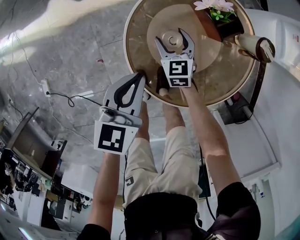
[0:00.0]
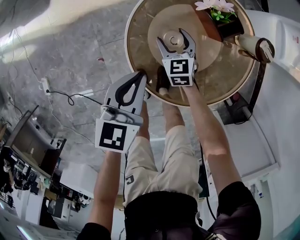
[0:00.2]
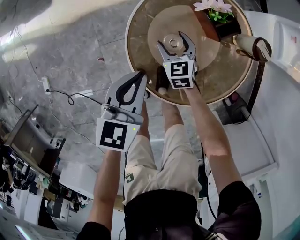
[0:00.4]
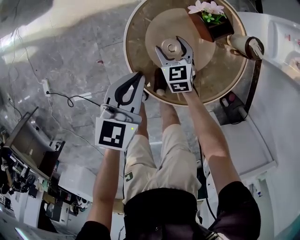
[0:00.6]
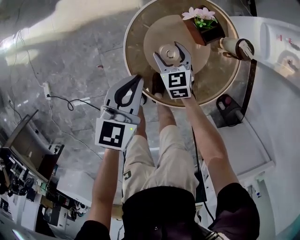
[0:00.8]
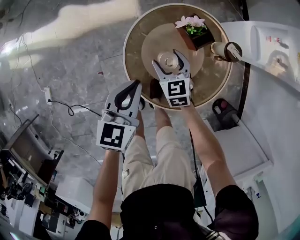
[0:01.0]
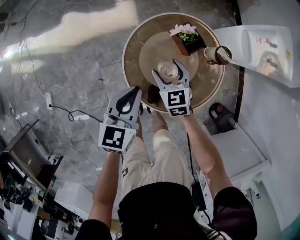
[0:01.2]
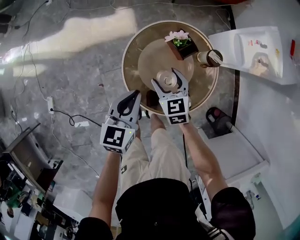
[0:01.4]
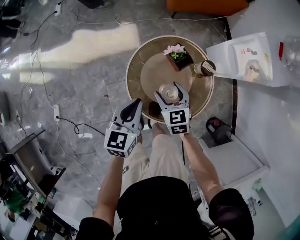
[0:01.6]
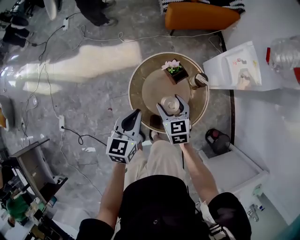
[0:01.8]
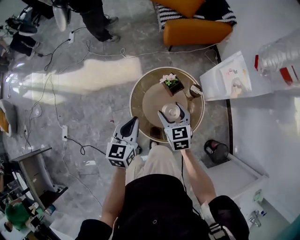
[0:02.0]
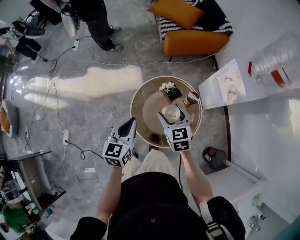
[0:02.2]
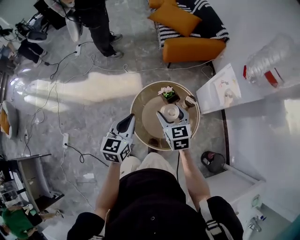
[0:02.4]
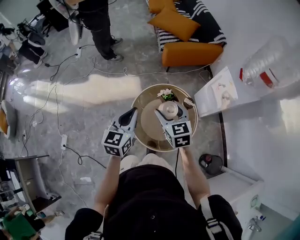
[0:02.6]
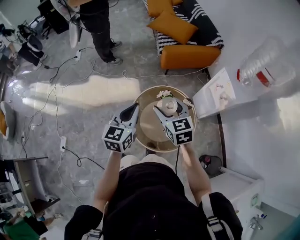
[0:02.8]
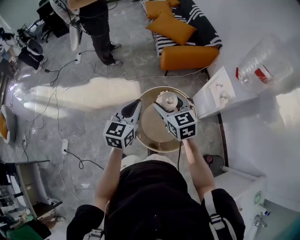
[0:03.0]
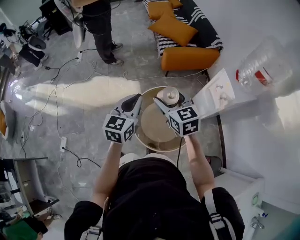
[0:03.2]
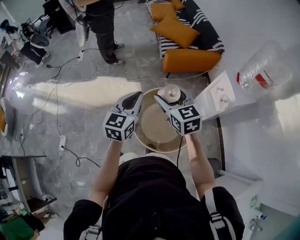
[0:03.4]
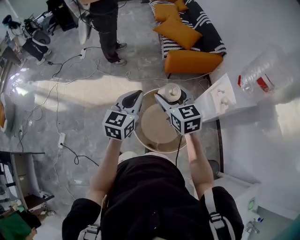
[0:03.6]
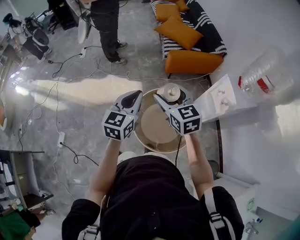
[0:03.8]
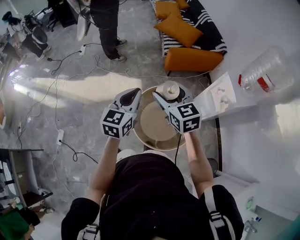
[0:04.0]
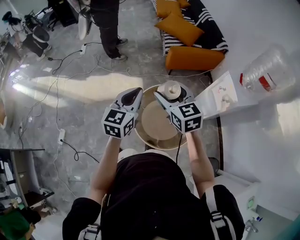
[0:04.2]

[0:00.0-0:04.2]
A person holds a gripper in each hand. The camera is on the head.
0:00.0 to 0:01.4: The left gripper moves upward, roughly 15 cm. Meanwhile the right gripper goes some 25 cm upward.
0:01.4 to 0:02.8: Both grippers move upward, roughly 30 cm.
0:02.8 to 0:04.2: The left gripper changes place by some 5 cm. The right gripper is displaced upward by about 5 cm.

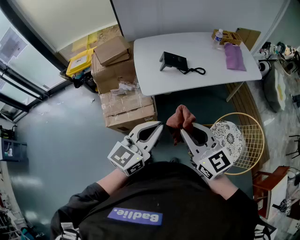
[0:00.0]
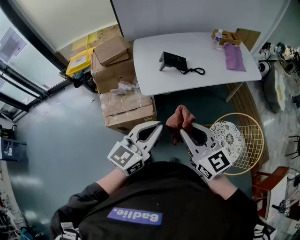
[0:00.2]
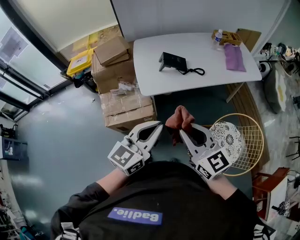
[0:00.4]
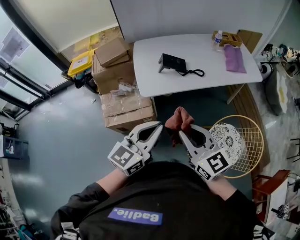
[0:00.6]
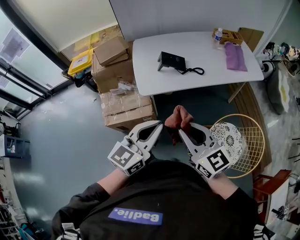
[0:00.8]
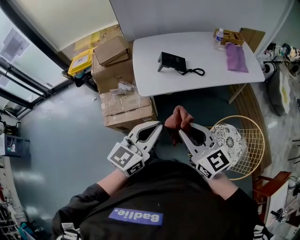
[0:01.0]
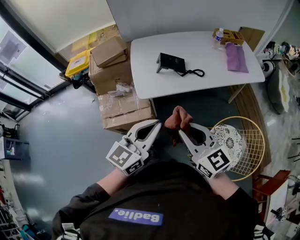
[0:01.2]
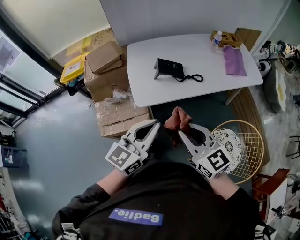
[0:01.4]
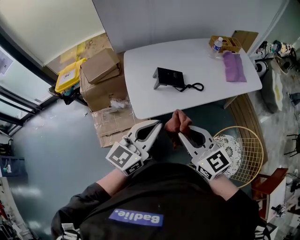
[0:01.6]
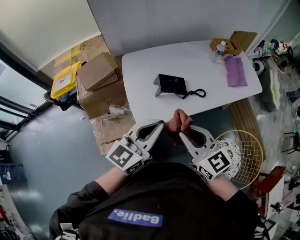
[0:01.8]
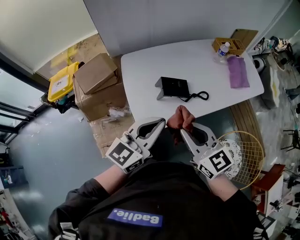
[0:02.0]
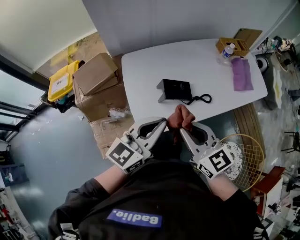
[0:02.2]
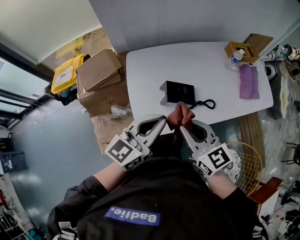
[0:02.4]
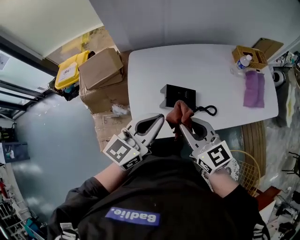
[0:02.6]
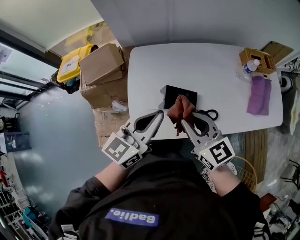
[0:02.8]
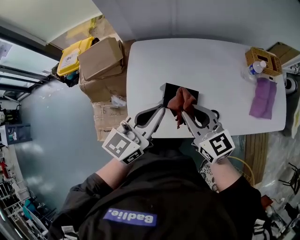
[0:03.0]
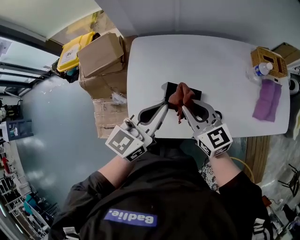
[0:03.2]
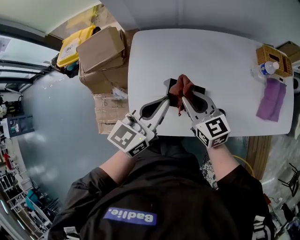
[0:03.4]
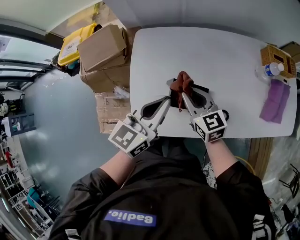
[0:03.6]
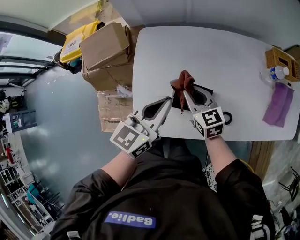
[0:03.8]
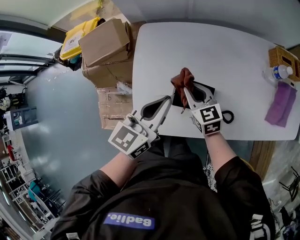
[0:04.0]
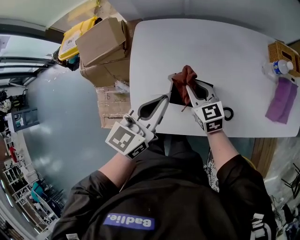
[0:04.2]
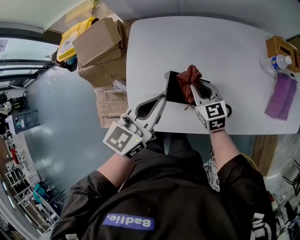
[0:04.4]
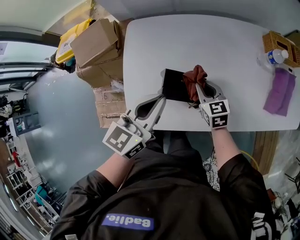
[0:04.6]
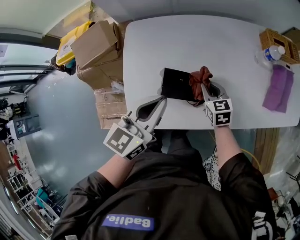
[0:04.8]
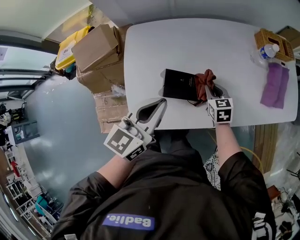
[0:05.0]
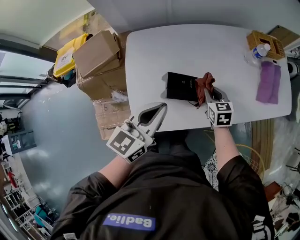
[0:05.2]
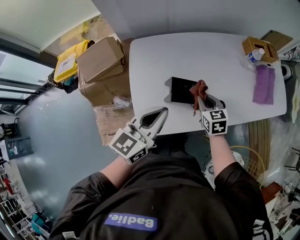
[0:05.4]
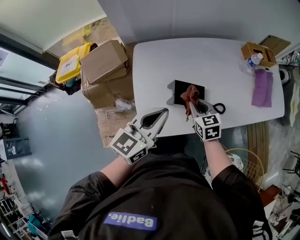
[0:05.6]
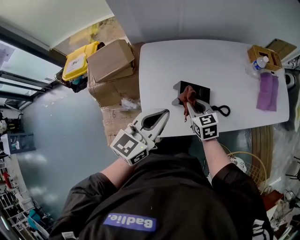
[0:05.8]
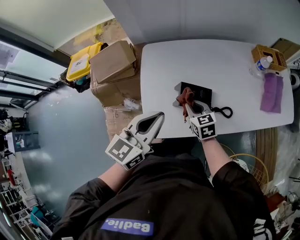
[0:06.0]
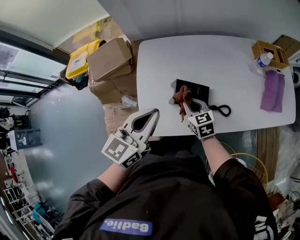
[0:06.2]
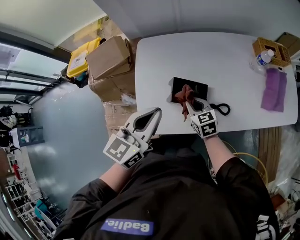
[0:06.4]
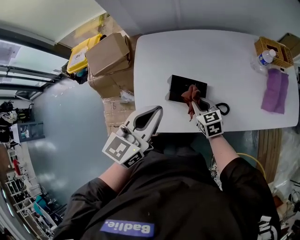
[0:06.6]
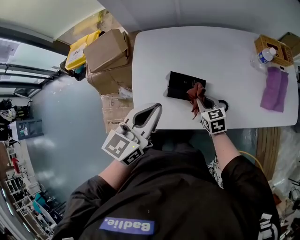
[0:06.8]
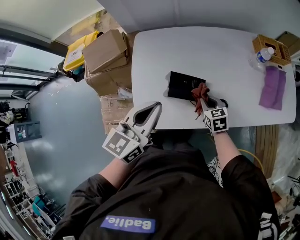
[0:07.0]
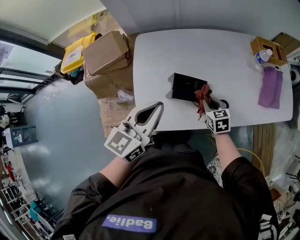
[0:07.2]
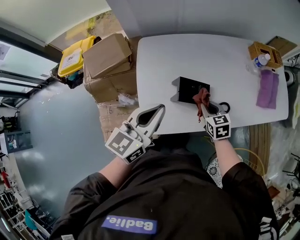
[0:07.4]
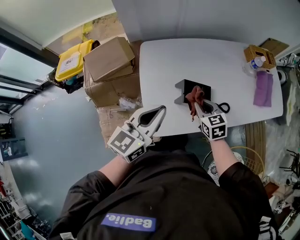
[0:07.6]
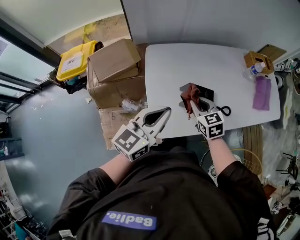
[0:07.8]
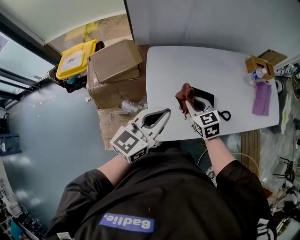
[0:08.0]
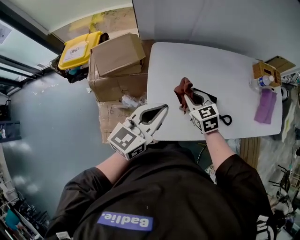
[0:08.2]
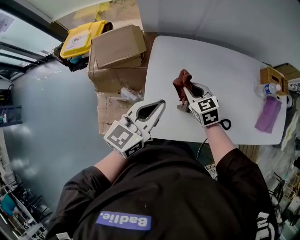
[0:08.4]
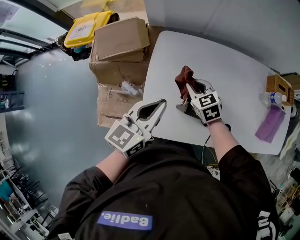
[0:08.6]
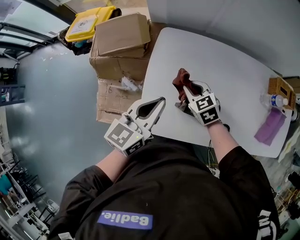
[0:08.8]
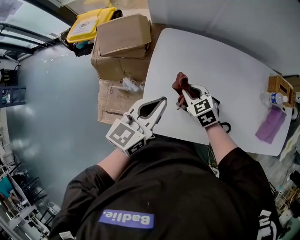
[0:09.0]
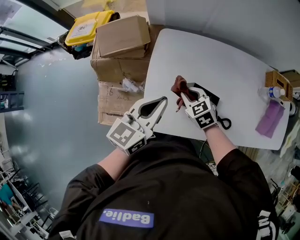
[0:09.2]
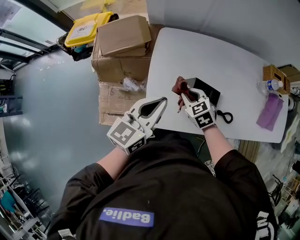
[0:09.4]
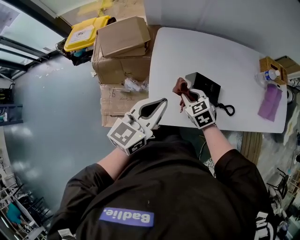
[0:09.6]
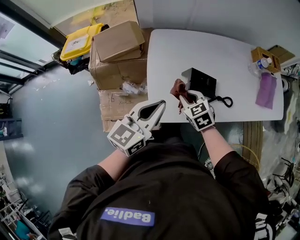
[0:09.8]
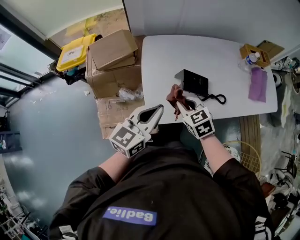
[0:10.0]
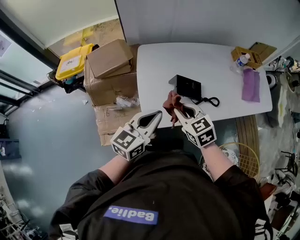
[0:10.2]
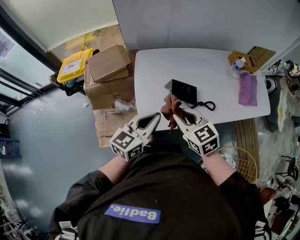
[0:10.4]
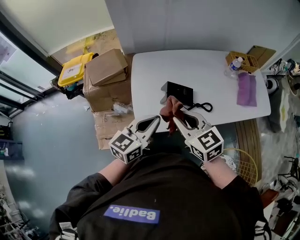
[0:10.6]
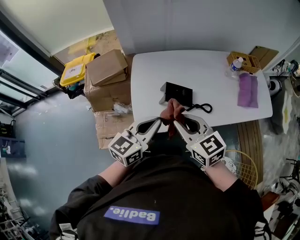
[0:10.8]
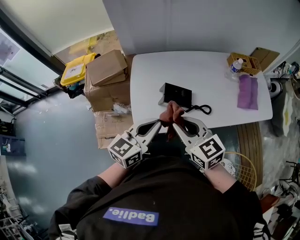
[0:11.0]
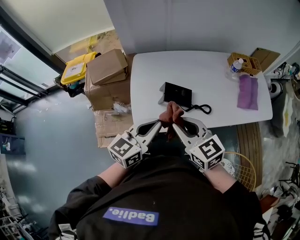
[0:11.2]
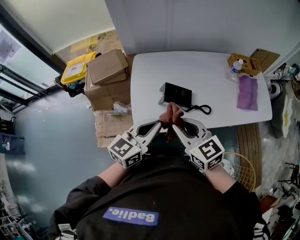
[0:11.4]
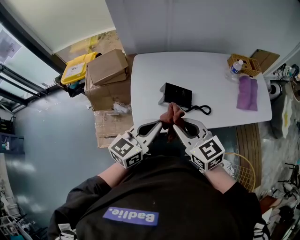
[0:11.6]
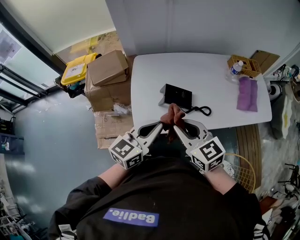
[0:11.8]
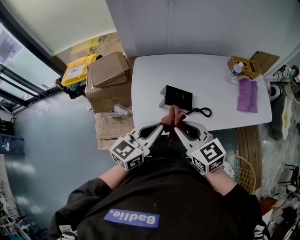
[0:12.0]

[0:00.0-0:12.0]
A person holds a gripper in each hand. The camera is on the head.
0:00.0 to 0:01.6: The grippers both shift forward by roughly 15 cm.
0:01.6 to 0:03.0: Both grippers move forward, some 30 cm.
0:03.0 to 0:04.4: The left gripper moves downward, some 10 cm, while the right gripper shifts some 20 cm downward and forward.
0:04.4 to 0:06.0: The left gripper goes approximately 10 cm backward, upward and to the left, while the right gripper shifts about 5 cm backward, and moves approximately 10 cm to the right and comes back.
0:06.0 to 0:07.6: The right gripper goes to the right and returns, about 10 cm each way.
0:07.6 to 0:09.0: The left gripper moves approximately 5 cm. Meanwhile the right gripper shifts by approximately 15 cm, and changes its angle by about 30 degrees.
0:09.0 to 0:10.4: The left gripper travels backward by approximately 15 cm. The right gripper heads backward and upward, covering approximately 25 cm, and rotates approximately 20 degrees.
0:10.4 to 0:12.0: The grippers both shift to the right by about 5 cm.

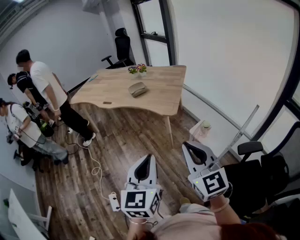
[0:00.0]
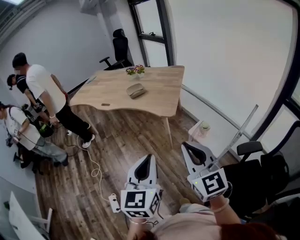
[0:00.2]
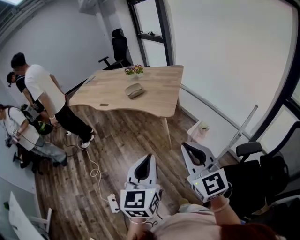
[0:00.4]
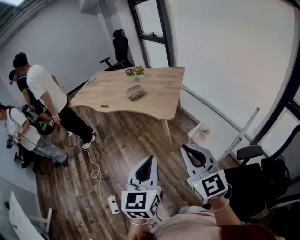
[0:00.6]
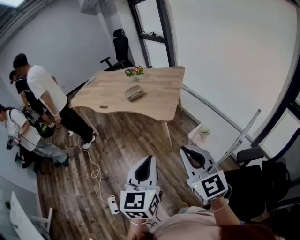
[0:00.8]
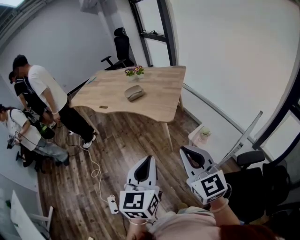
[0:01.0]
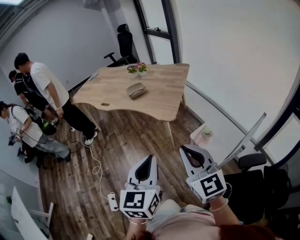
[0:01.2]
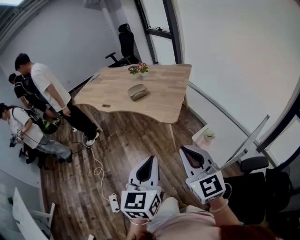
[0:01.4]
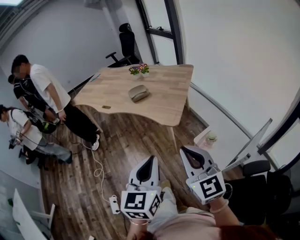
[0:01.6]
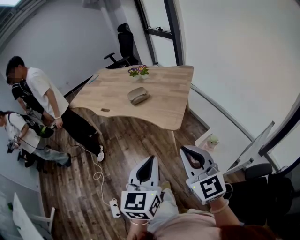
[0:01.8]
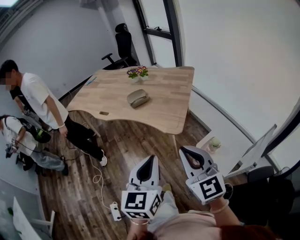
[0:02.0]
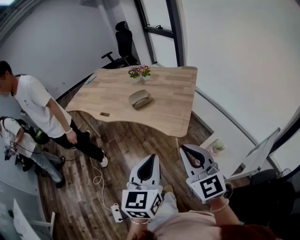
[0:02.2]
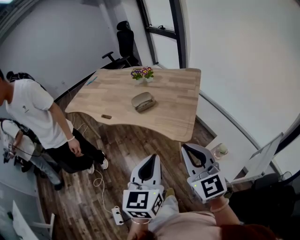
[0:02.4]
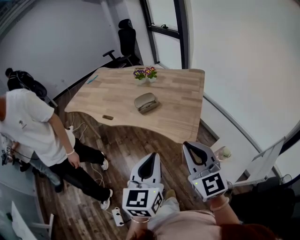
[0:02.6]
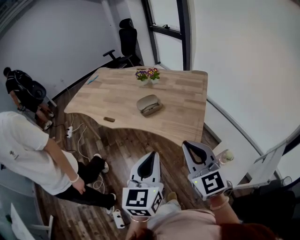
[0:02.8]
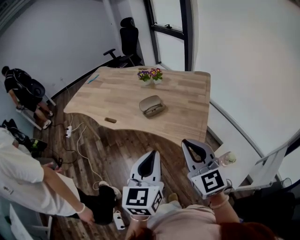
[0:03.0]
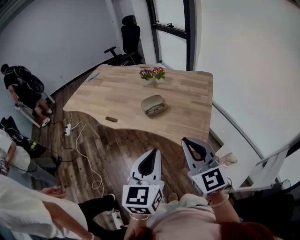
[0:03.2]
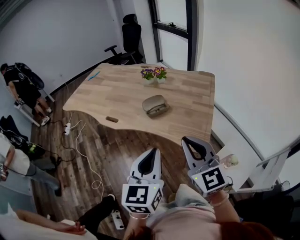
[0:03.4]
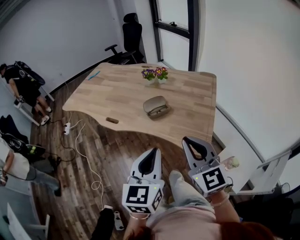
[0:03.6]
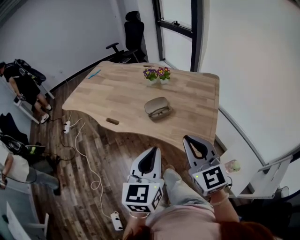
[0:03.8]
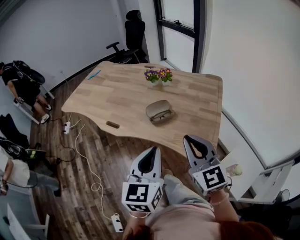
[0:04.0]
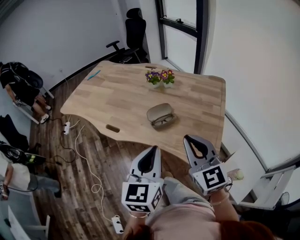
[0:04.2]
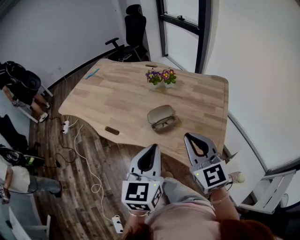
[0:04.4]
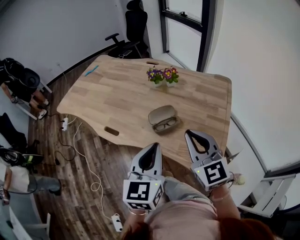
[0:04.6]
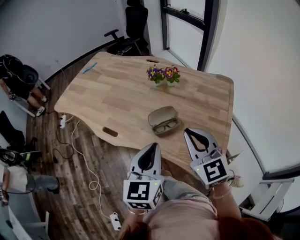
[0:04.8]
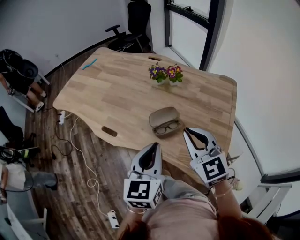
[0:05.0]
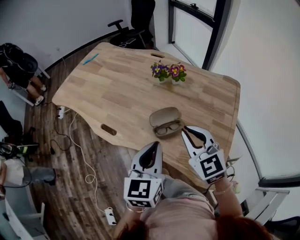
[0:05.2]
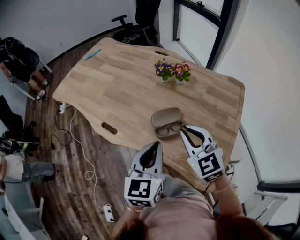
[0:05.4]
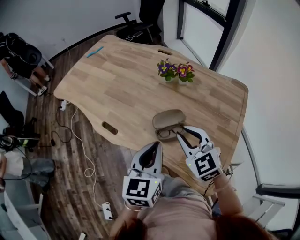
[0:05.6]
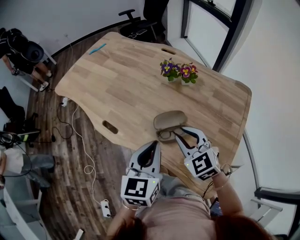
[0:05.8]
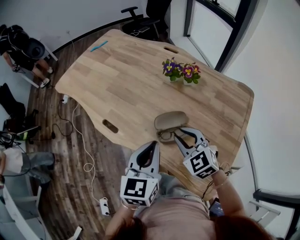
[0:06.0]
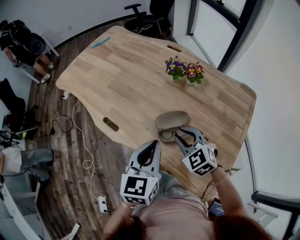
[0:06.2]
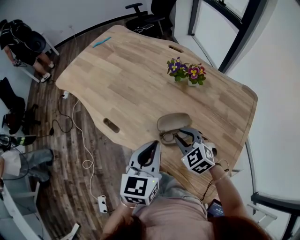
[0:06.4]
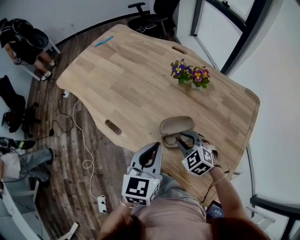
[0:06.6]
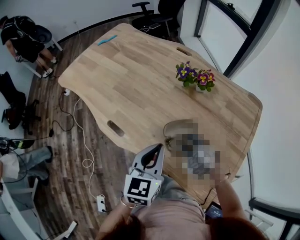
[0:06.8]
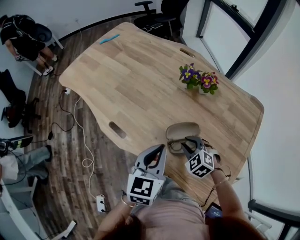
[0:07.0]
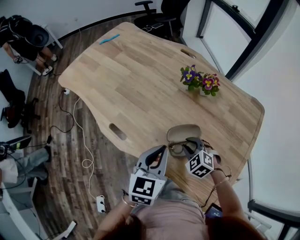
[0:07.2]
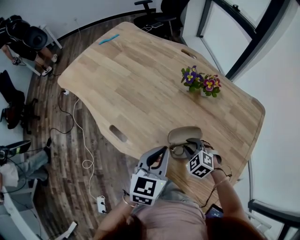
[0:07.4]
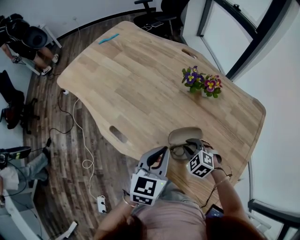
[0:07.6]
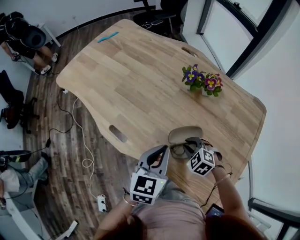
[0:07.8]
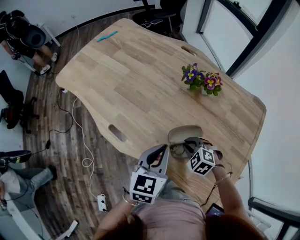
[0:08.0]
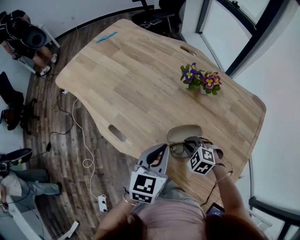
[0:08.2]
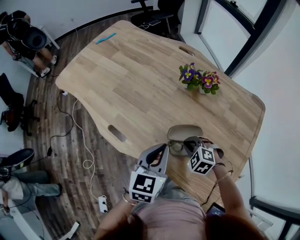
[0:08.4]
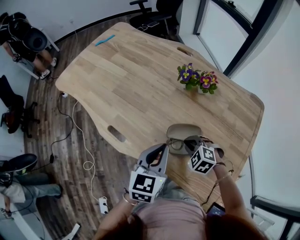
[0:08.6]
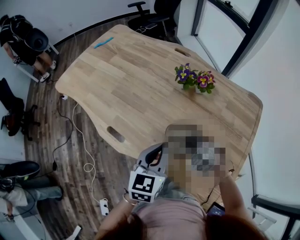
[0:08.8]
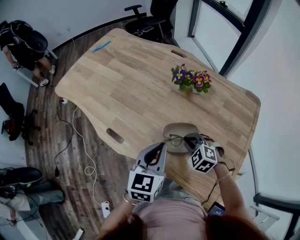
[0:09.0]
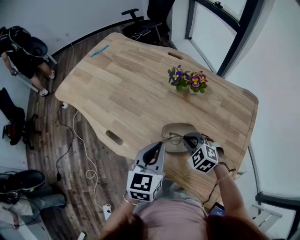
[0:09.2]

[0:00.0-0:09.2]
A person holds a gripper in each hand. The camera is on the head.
0:00.0 to 0:01.6: The grippers both shift forward and to the right by some 15 cm.
0:01.6 to 0:03.0: Both grippers travel together forward and to the left, about 30 cm.
0:03.0 to 0:04.6: Both grippers travel together forward, about 25 cm.
0:04.6 to 0:06.2: The right gripper heads downward and forward, covering some 25 cm, and turns by about 40 degrees. Meanwhile the left gripper goes about 15 cm forward and downward.
0:06.2 to 0:07.6: The right gripper goes about 15 cm downward, and rotates some 20 degrees; the left gripper moves forward, roughly 5 cm.
0:07.6 to 0:09.2: The right gripper shifts approximately 5 cm upward.
